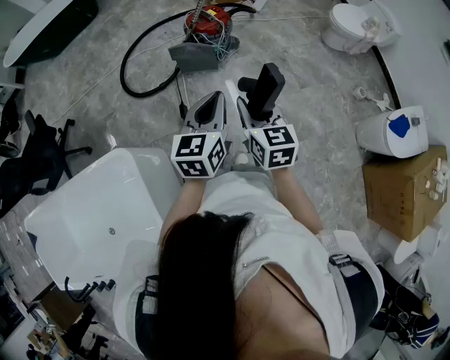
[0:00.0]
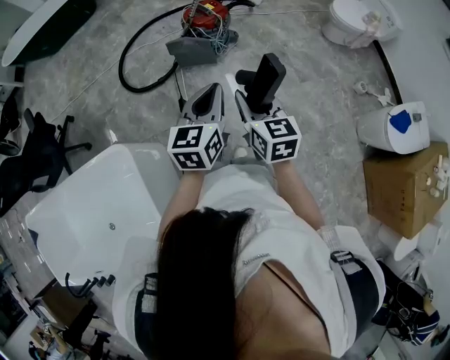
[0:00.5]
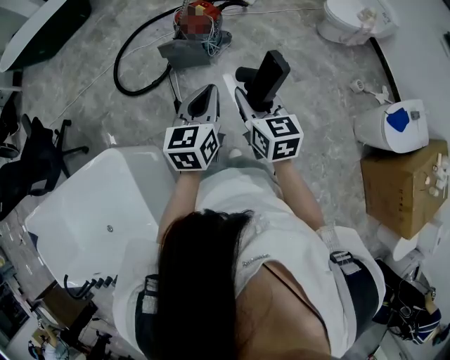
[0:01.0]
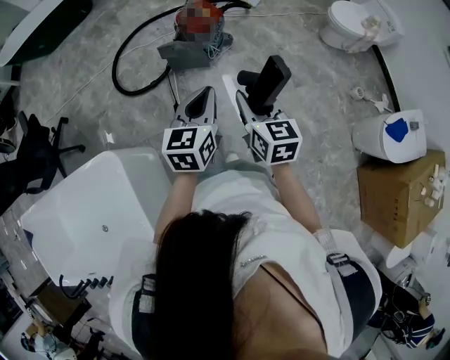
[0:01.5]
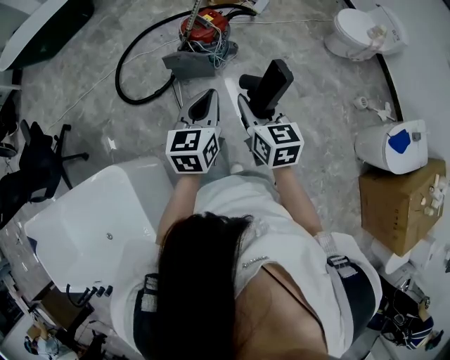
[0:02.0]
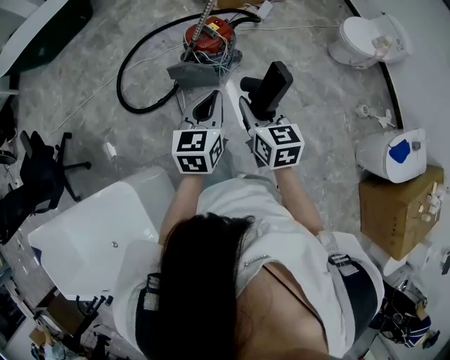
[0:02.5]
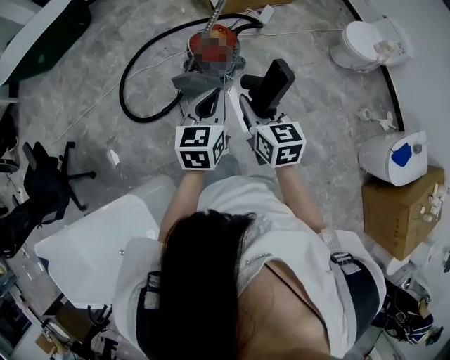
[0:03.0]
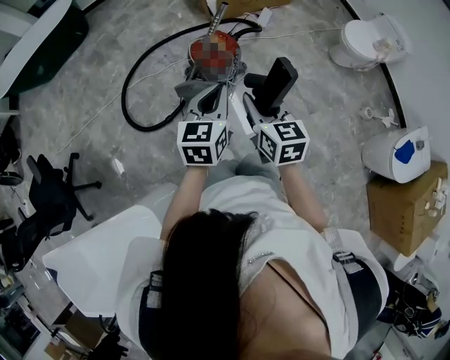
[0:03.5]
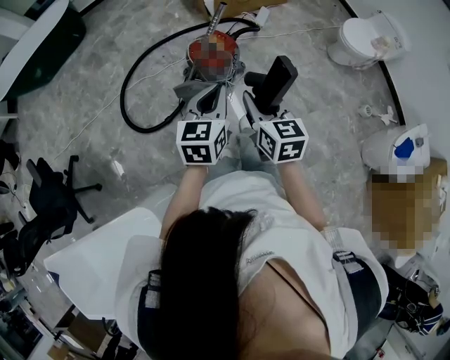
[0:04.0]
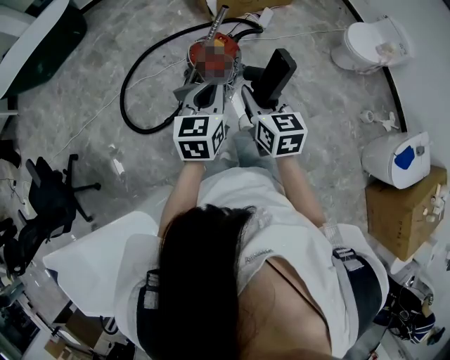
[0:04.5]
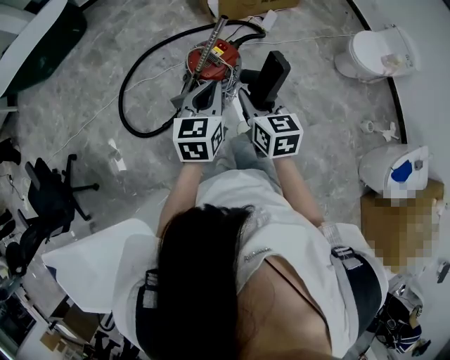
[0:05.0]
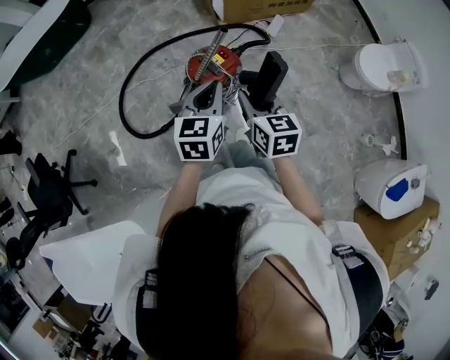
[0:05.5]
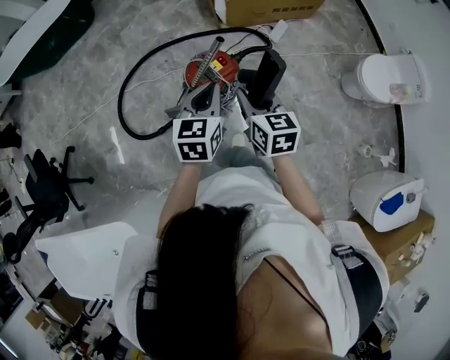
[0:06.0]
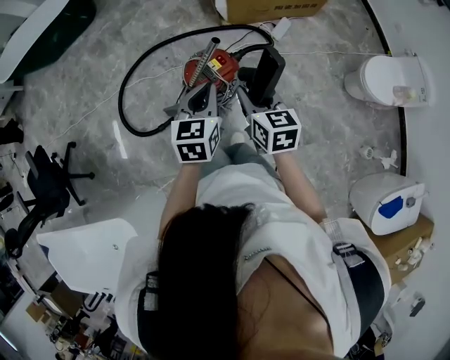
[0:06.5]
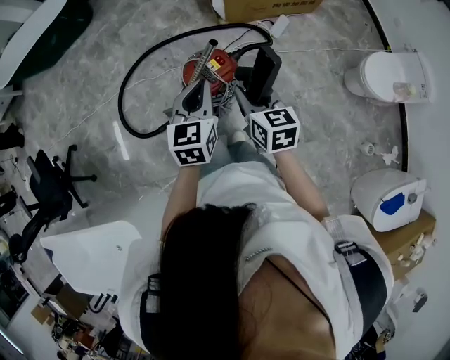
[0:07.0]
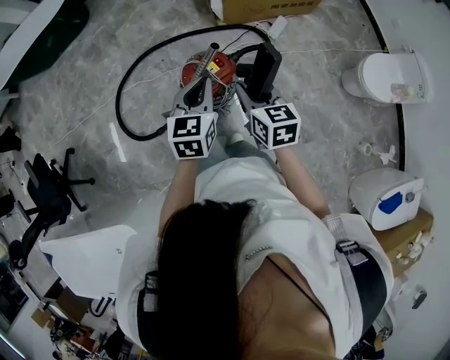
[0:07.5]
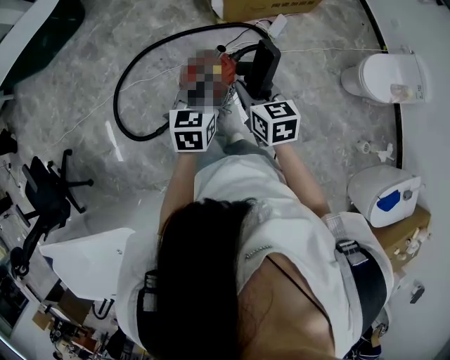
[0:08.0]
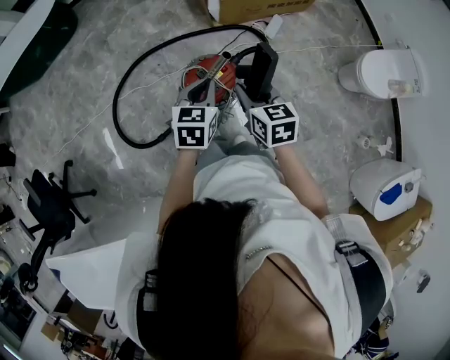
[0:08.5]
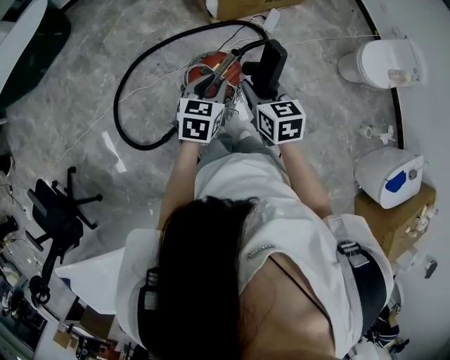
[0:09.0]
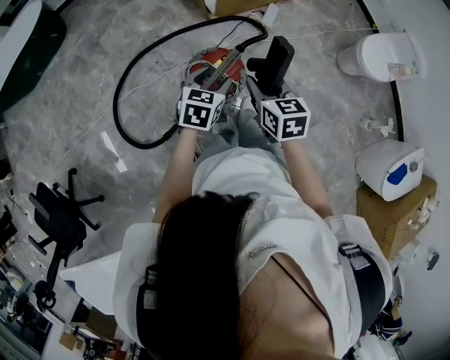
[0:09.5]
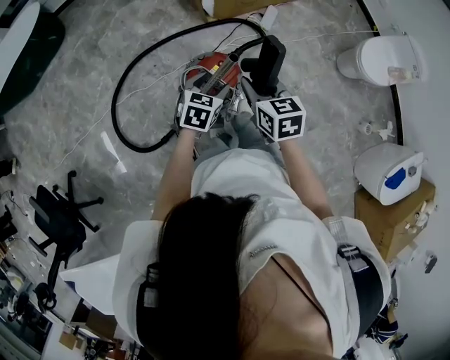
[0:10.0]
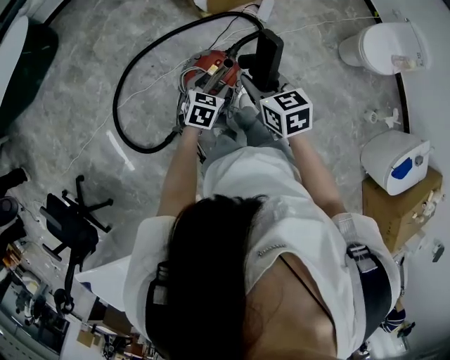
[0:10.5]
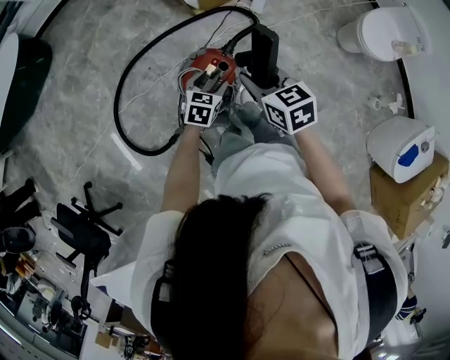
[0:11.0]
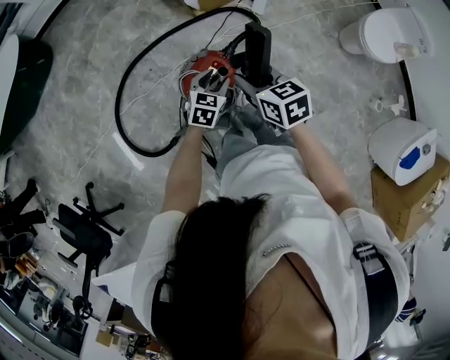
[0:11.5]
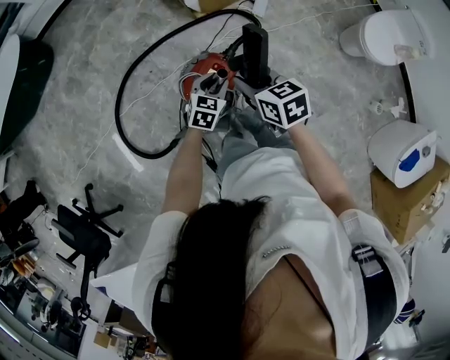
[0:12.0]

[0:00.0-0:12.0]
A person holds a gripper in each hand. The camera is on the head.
0:00.0 to 0:02.0: The grippers both shift forward by some 10 cm.
0:02.0 to 0:04.0: The right gripper shifts about 20 cm forward and to the left; the left gripper moves forward, about 20 cm.
0:04.0 to 0:06.0: Both grippers move forward, about 25 cm.
0:06.0 to 0:08.0: The grippers both shift forward by roughly 10 cm.
0:08.0 to 0:10.0: The left gripper goes approximately 15 cm downward and forward, swivels about 30 degrees, and opens. The right gripper changes place by about 5 cm.
0:10.0 to 0:12.0: The left gripper moves downward and forward, approximately 10 cm, and closes up. The right gripper moves forward, some 5 cm.

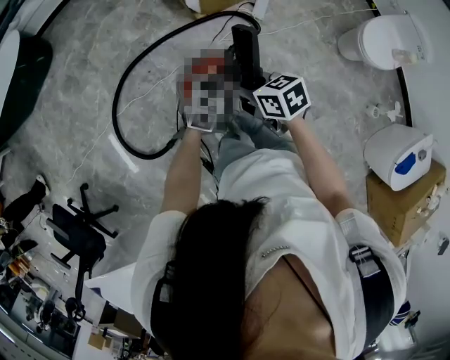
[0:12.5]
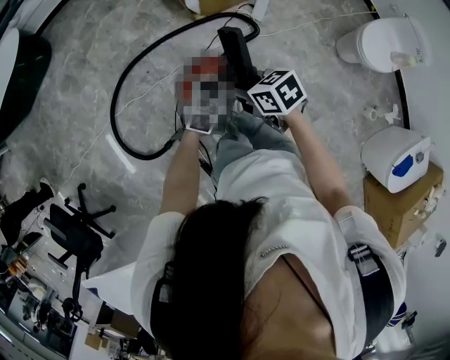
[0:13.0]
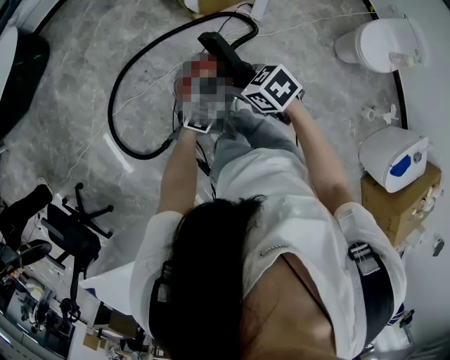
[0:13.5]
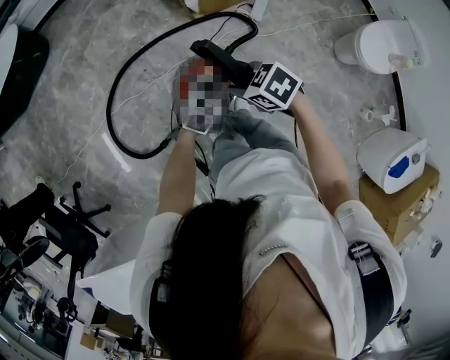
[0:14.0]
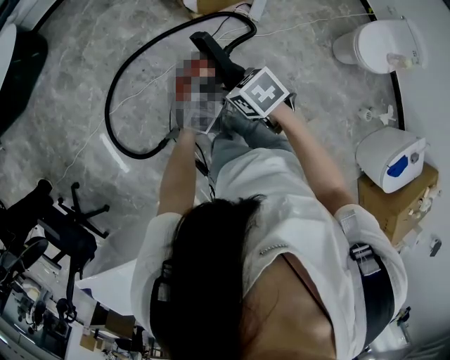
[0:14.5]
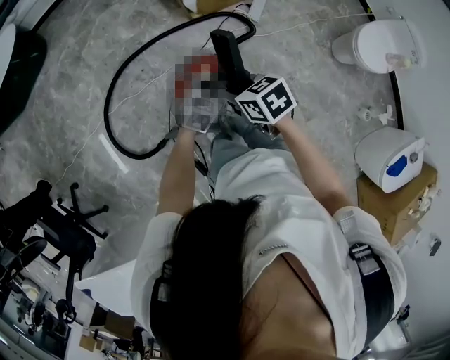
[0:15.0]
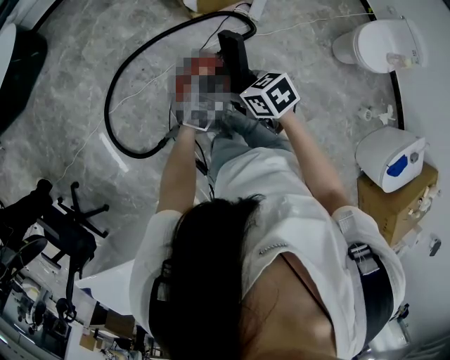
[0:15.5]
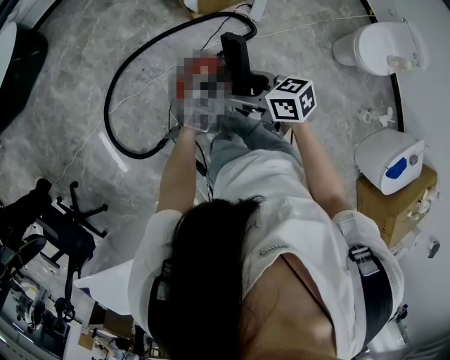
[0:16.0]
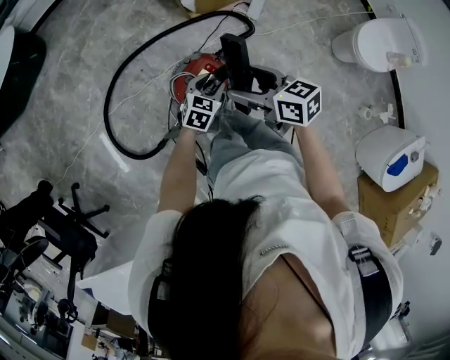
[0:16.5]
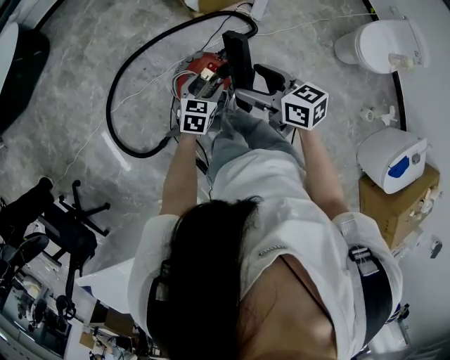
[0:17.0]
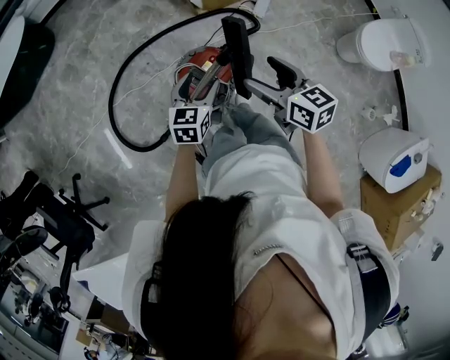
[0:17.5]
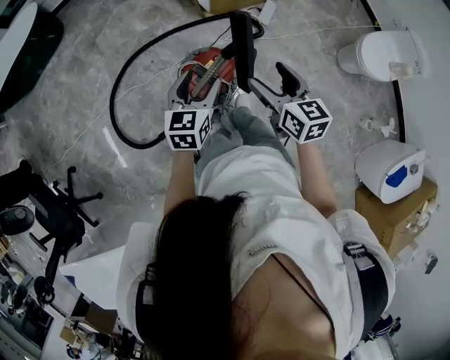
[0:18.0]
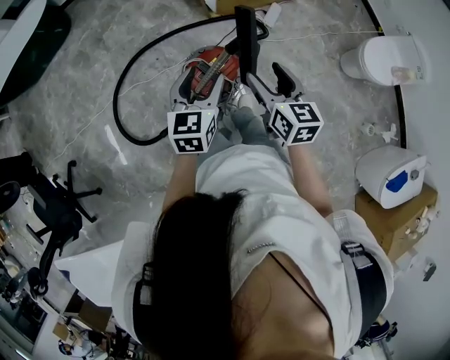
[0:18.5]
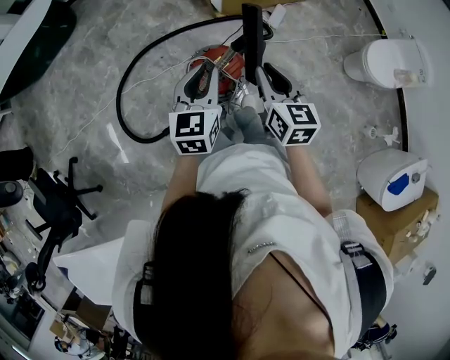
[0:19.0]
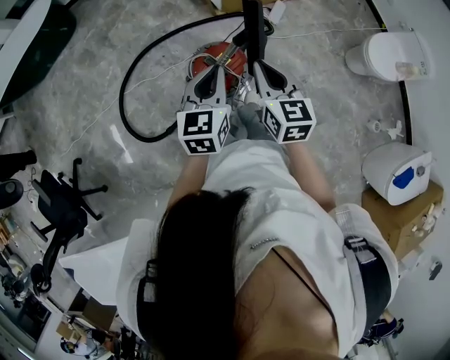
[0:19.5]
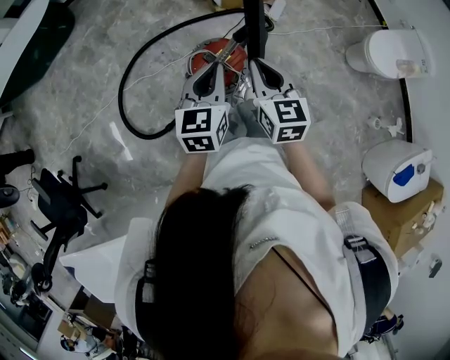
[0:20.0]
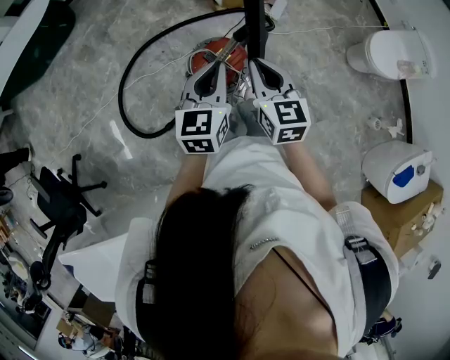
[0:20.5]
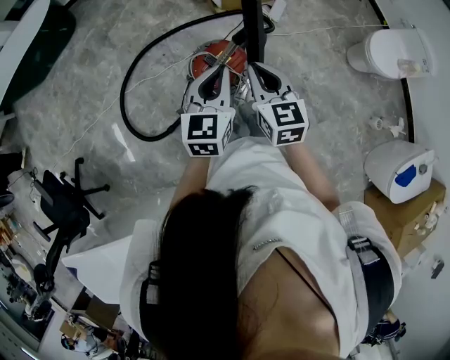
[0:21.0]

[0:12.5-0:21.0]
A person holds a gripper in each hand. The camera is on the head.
0:12.5 to 0:14.5: The right gripper turns by about 20 degrees.
0:14.5 to 0:16.5: The right gripper shifts by roughly 5 cm, angles its fingers upward, by some 30 degrees, and opens its fingers.
0:16.5 to 0:19.0: The right gripper is displaced backward and upward by approximately 10 cm, turns by roughly 30 degrees, and closes. Meanwhile the left gripper goes some 25 cm upward, rotates about 40 degrees, and opens and closes again.
0:19.0 to 0:21.0: The grippers stay close to where they were, moving slightly.

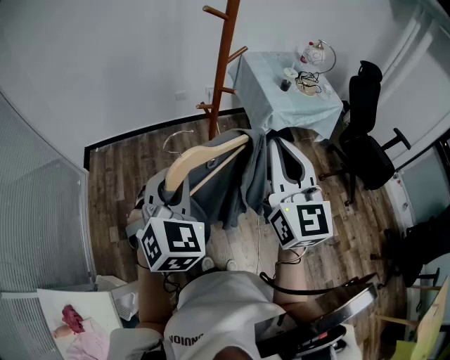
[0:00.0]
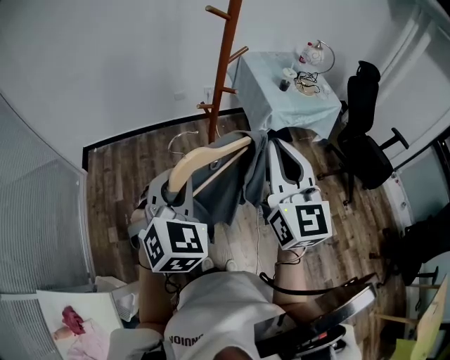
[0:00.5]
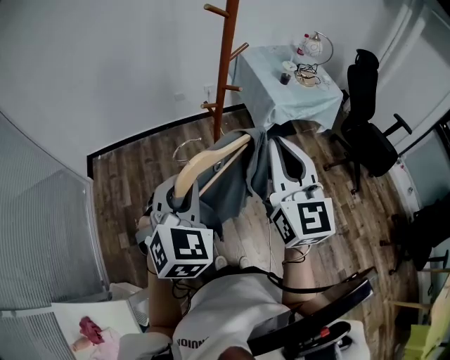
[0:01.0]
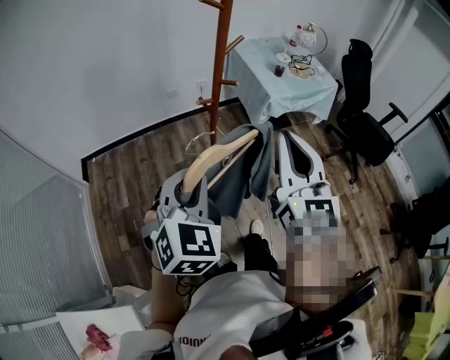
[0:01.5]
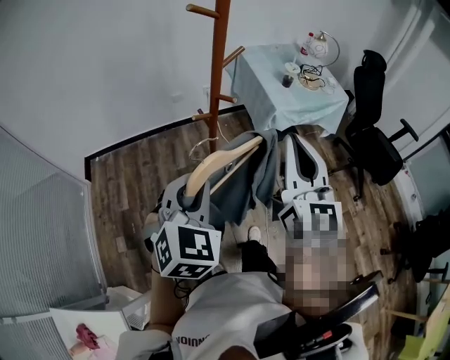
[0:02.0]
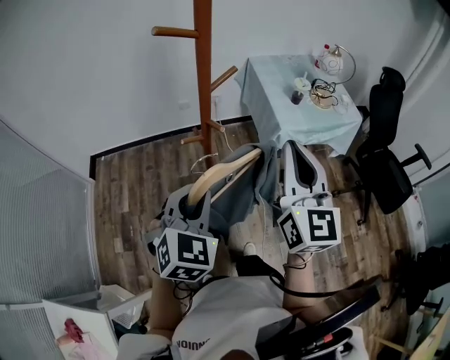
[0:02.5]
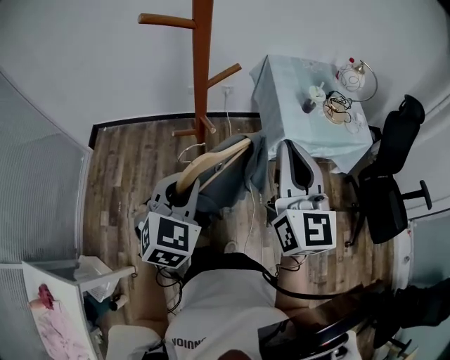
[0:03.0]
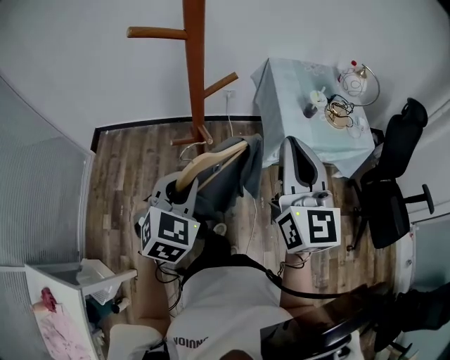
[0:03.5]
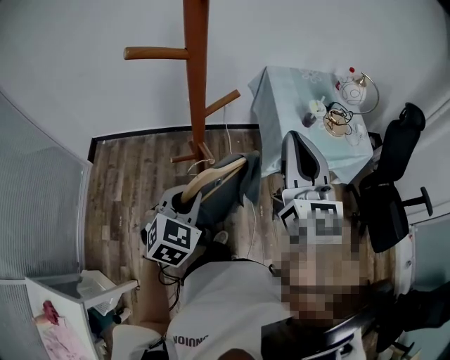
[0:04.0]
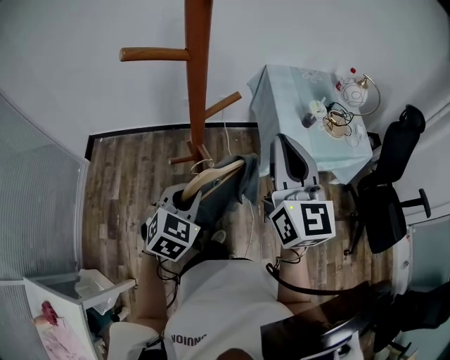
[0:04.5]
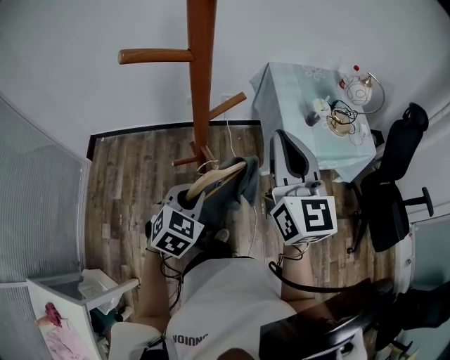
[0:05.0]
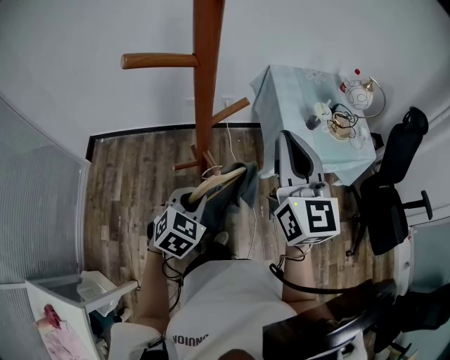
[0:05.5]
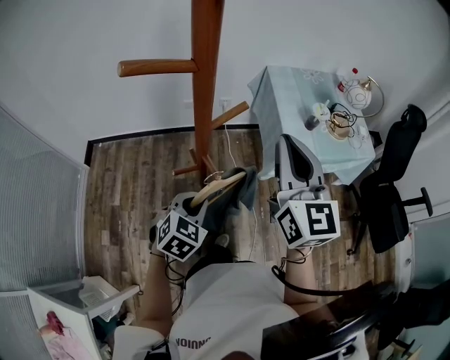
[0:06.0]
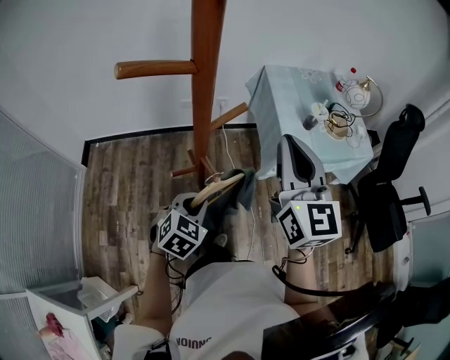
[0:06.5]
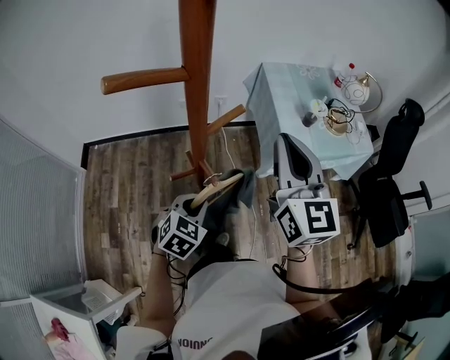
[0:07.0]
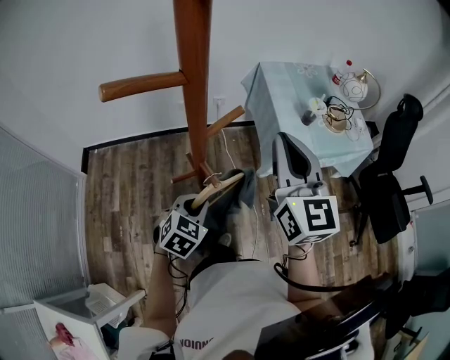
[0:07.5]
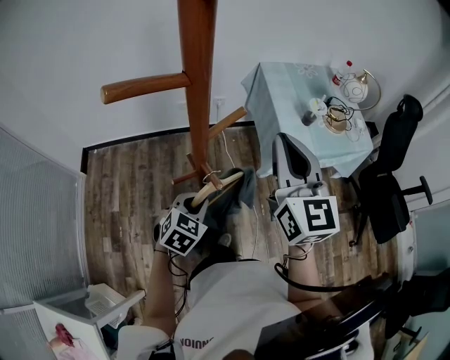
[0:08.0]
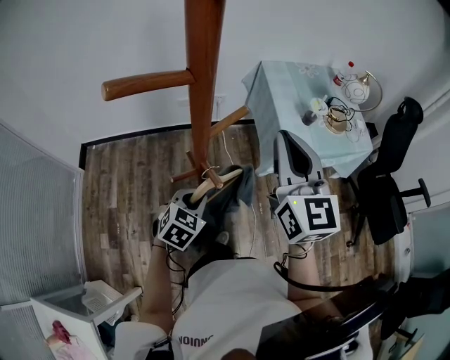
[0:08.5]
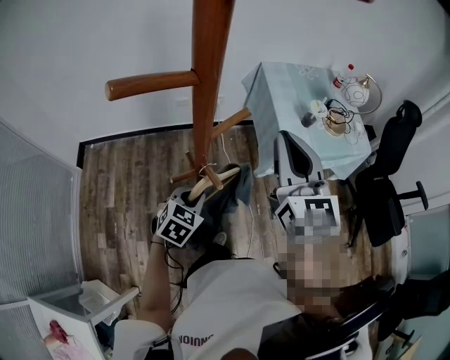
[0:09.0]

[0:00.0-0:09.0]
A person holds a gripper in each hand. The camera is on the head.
0:00.0 to 0:02.0: Both grippers travel together forward, roughly 5 cm.
0:02.0 to 0:04.5: The left gripper shifts some 20 cm forward and downward. The right gripper is displaced forward by approximately 20 cm.
0:04.5 to 0:07.0: The left gripper heads downward, covering roughly 5 cm.
0:07.0 to 0:09.0: The grippers move only a little.
